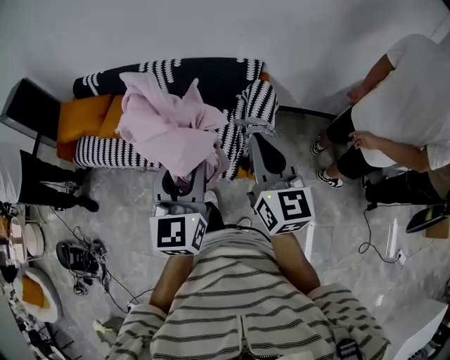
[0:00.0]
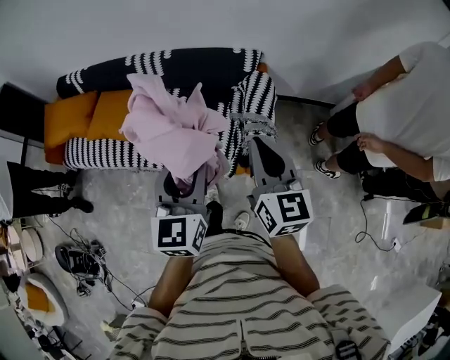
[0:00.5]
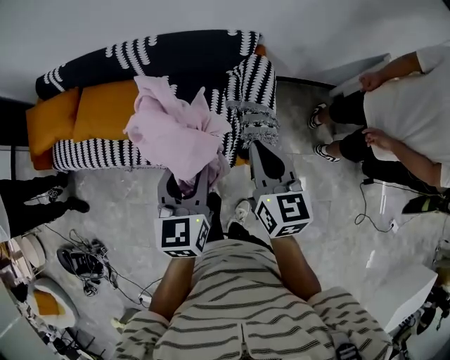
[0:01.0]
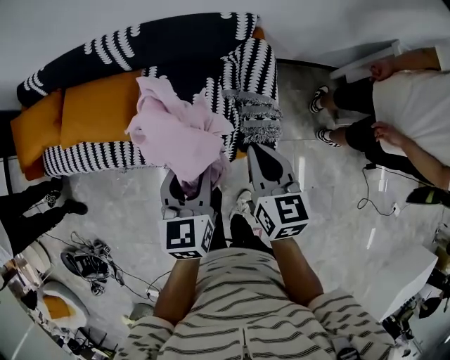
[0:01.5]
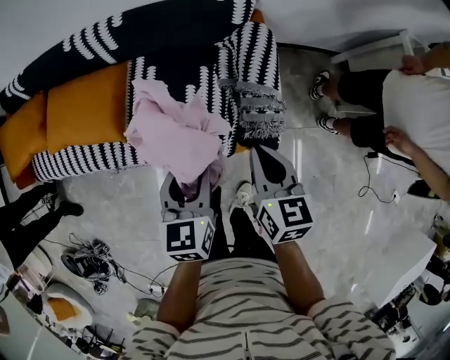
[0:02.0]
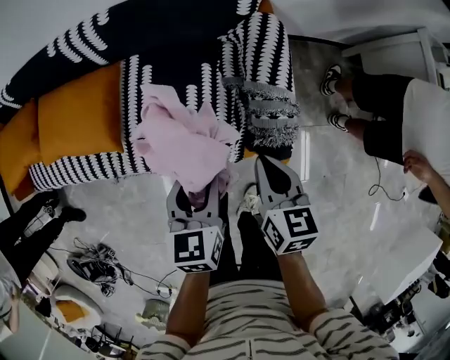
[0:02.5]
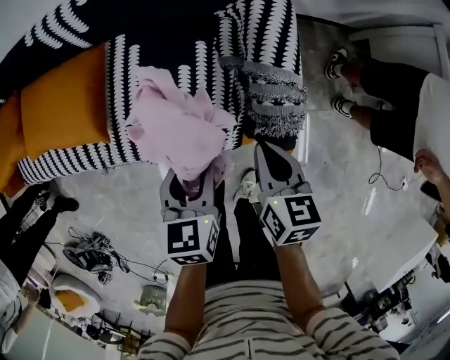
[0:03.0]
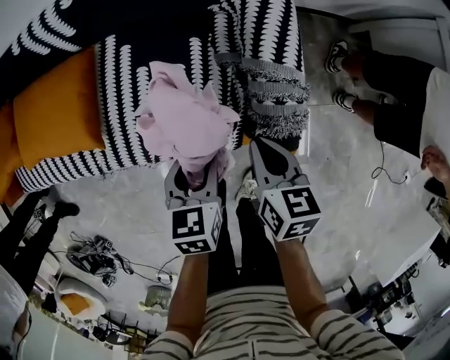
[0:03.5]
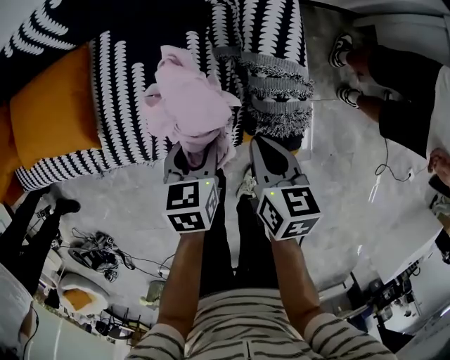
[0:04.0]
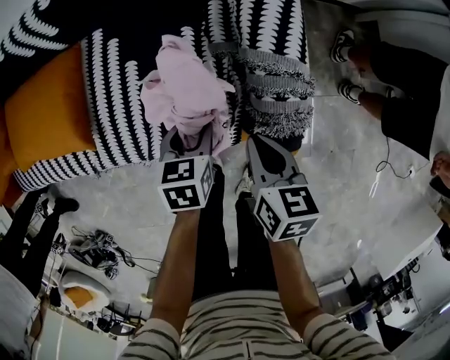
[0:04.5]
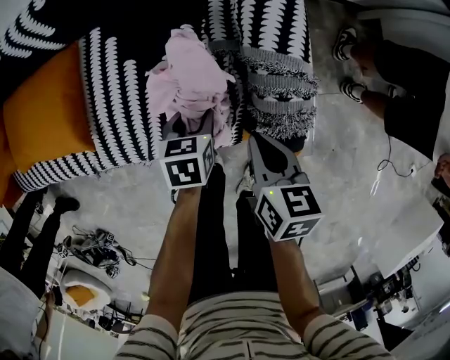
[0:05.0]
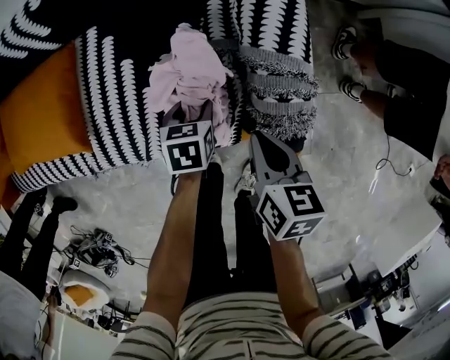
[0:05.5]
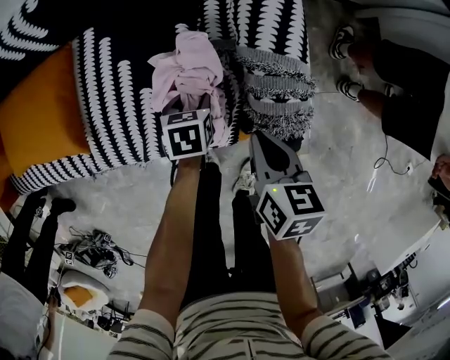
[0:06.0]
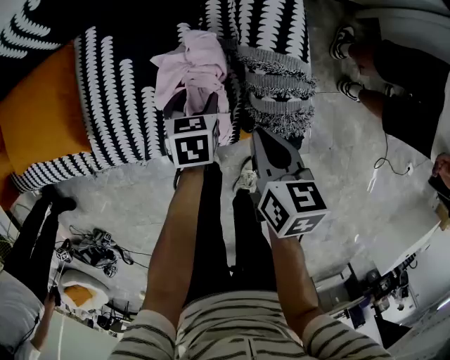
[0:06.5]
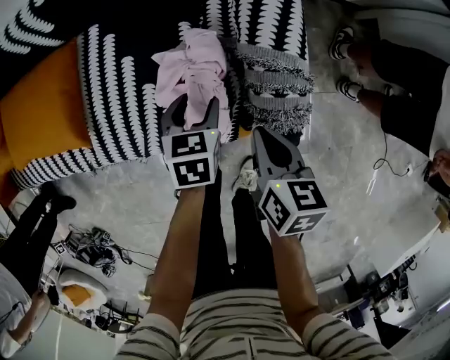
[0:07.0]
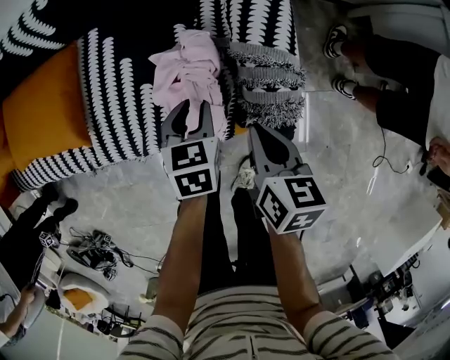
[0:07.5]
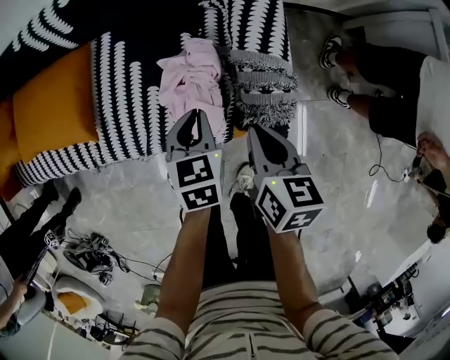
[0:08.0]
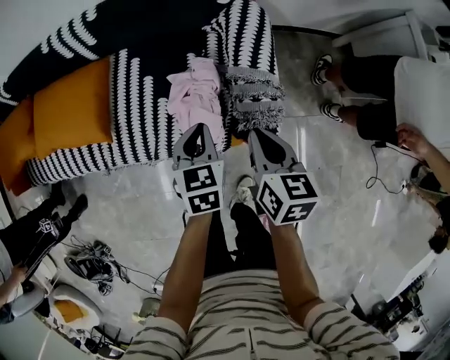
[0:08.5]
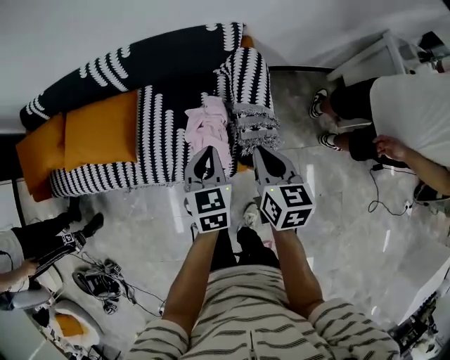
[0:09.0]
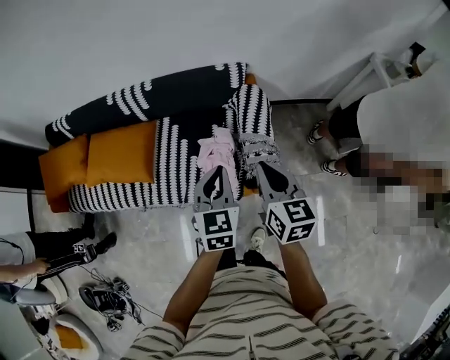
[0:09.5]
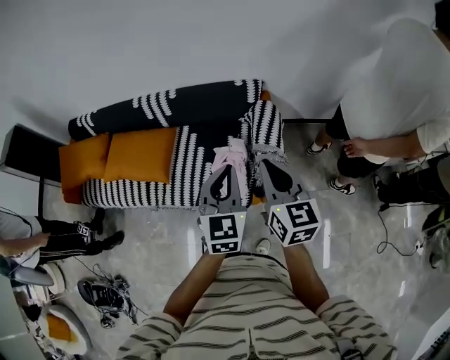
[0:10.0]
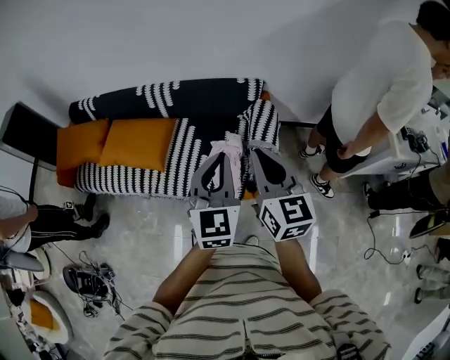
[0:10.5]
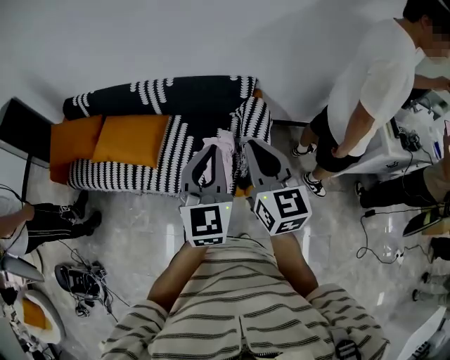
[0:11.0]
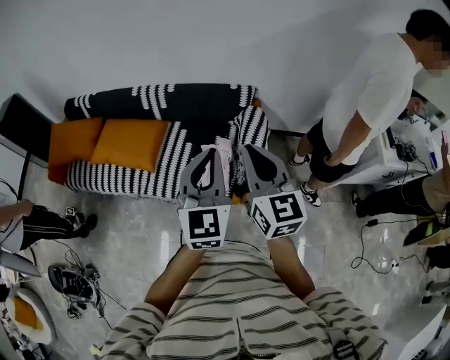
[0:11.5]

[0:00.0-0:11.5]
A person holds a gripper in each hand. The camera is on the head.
0:00.0 to 0:02.0: Both grippers travel together downward and forward, about 35 cm. The left gripper changes its angle by roughly 30 degrees; the right gripper tips its fingers downward by approximately 30 degrees.
0:02.0 to 0:04.0: Both grippers travel together downward, roughly 25 cm. The left gripper turns by some 20 degrees.
0:04.0 to 0:06.0: The left gripper goes about 15 cm downward and forward.
0:06.0 to 0:07.5: The left gripper goes roughly 10 cm upward.
0:07.5 to 0:09.5: Both grippers move upward, roughly 35 cm. The right gripper swivels some 30 degrees. The left gripper rotates approximately 30 degrees, and closes up.
0:09.5 to 0:11.5: The grippers both shift upward and backward by roughly 20 cm. The left gripper swivels about 30 degrees. Meanwhile the right gripper changes its angle by about 30 degrees.

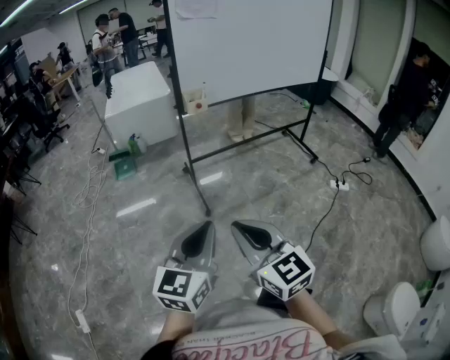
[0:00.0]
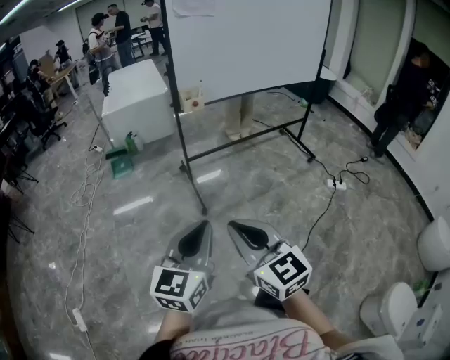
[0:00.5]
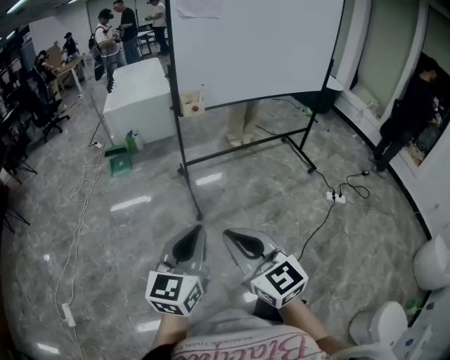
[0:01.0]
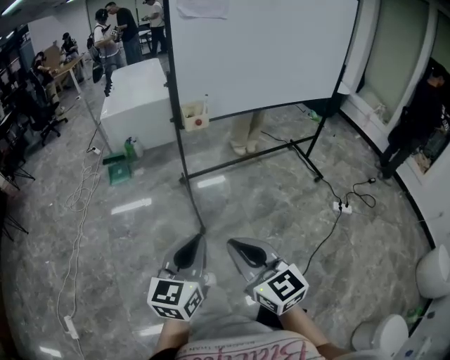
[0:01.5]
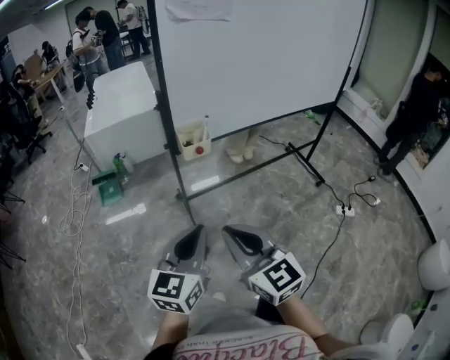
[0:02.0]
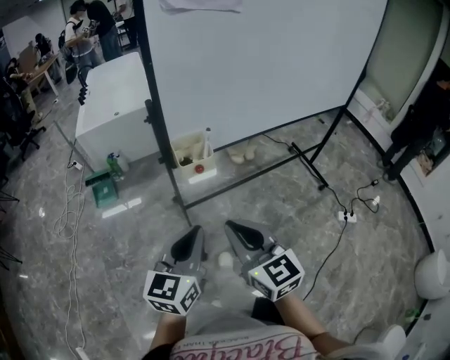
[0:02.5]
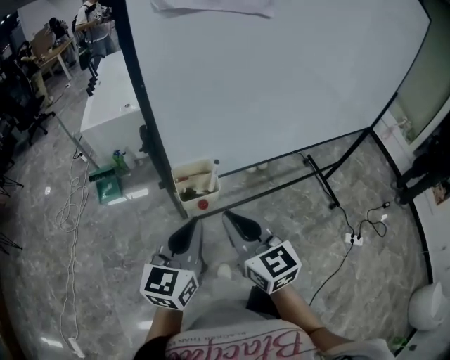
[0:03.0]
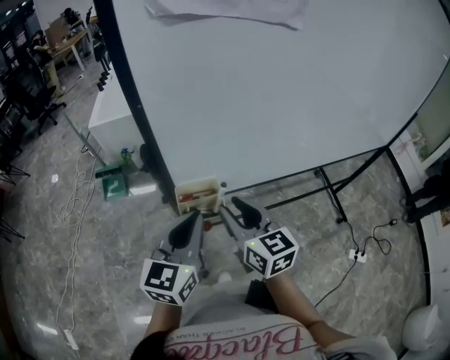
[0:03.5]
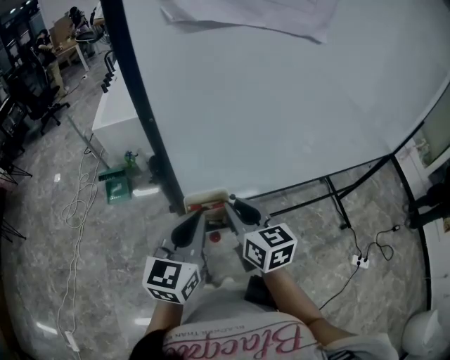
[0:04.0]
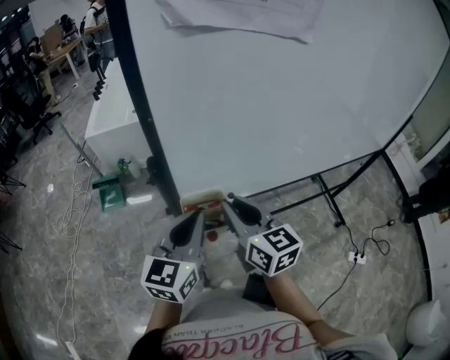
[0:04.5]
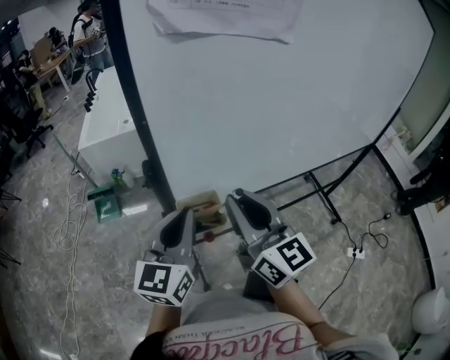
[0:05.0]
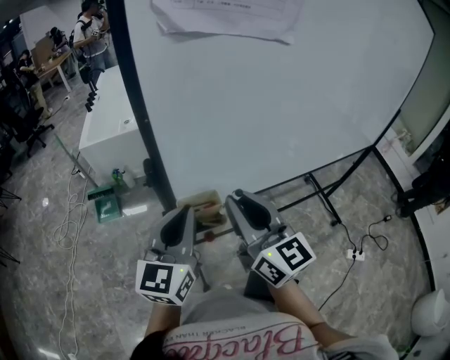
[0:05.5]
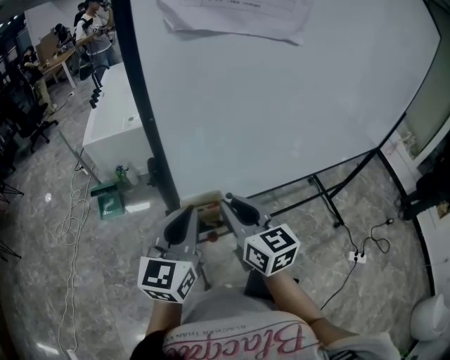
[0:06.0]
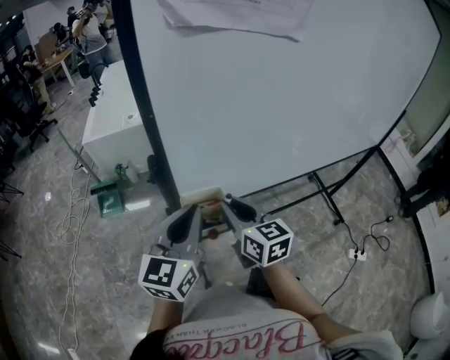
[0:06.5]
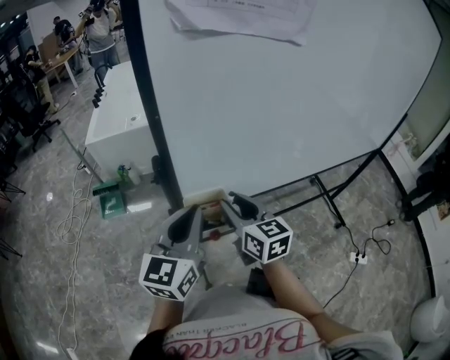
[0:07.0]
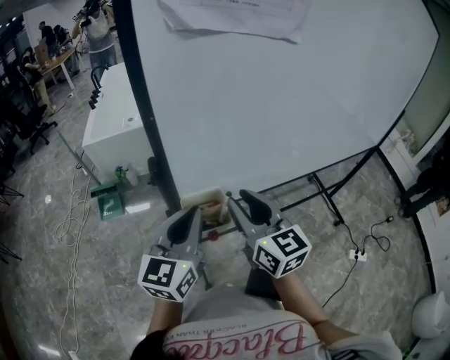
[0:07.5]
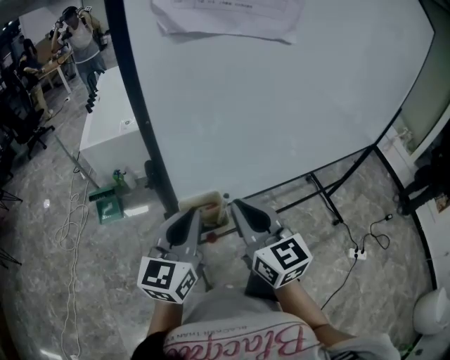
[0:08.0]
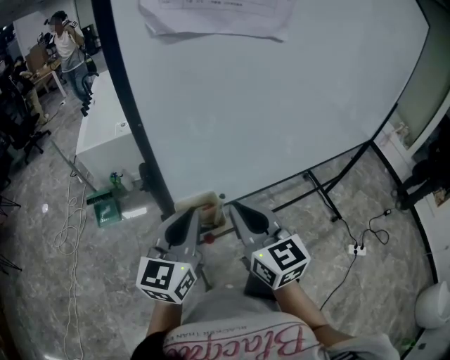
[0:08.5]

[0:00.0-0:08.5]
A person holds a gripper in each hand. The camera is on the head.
0:00.0 to 0:02.0: The two grippers go roughly 30 cm forward.
0:02.0 to 0:04.0: The two grippers go about 35 cm forward.
0:04.0 to 0:06.5: The right gripper moves roughly 10 cm upward and comes back.
0:06.5 to 0:08.5: The right gripper is displaced upward by roughly 5 cm.

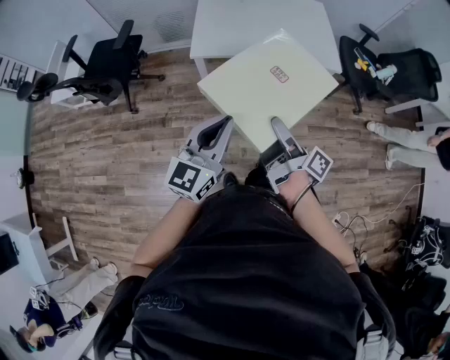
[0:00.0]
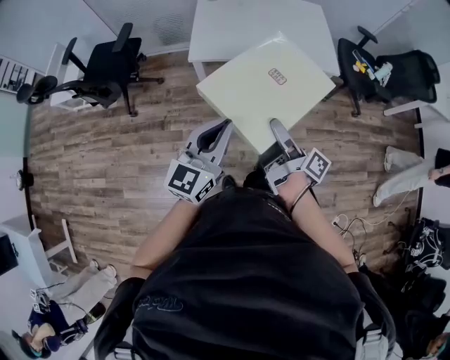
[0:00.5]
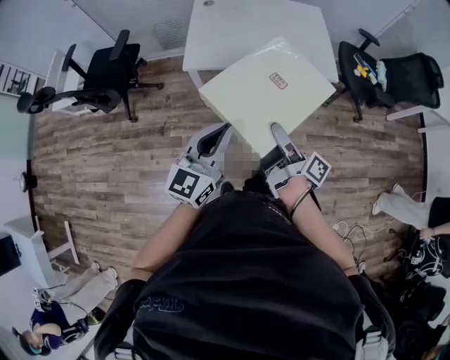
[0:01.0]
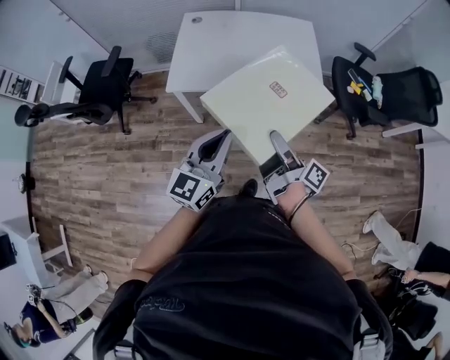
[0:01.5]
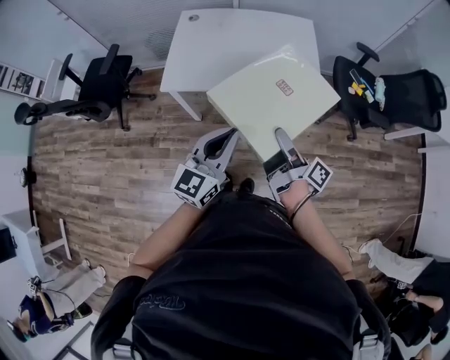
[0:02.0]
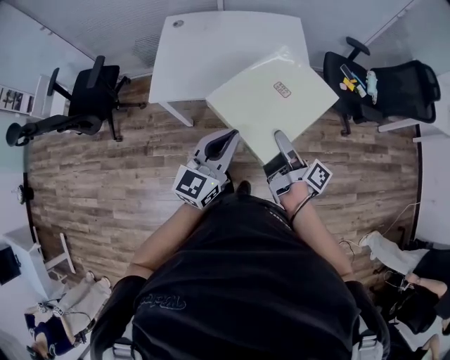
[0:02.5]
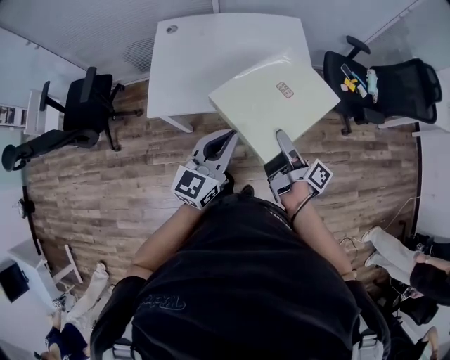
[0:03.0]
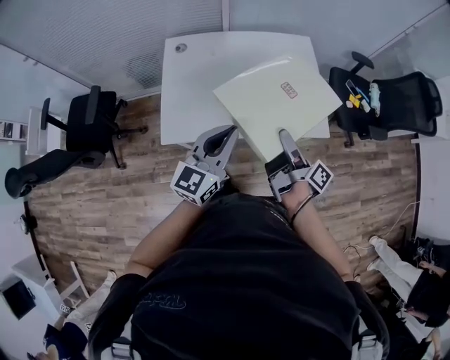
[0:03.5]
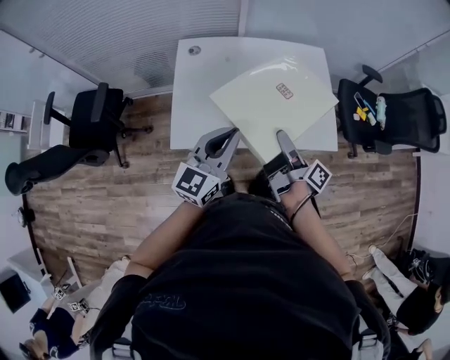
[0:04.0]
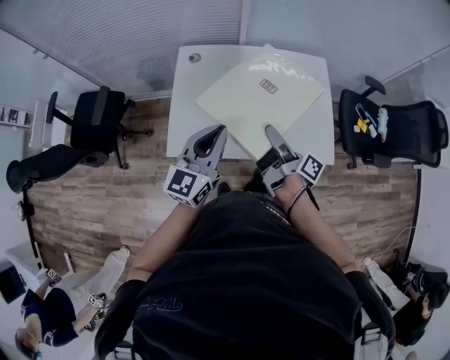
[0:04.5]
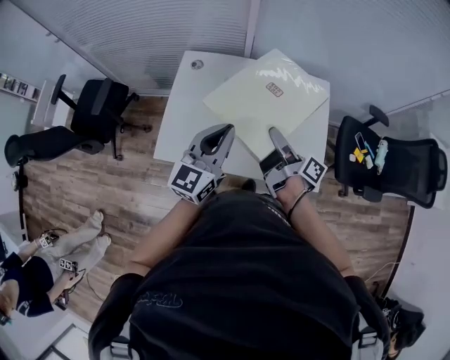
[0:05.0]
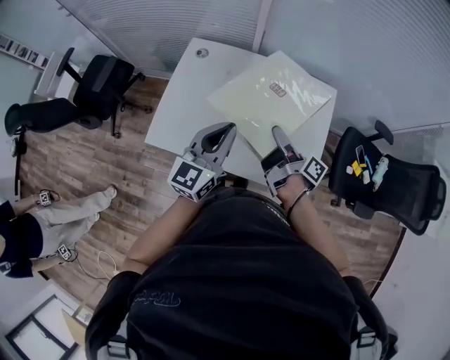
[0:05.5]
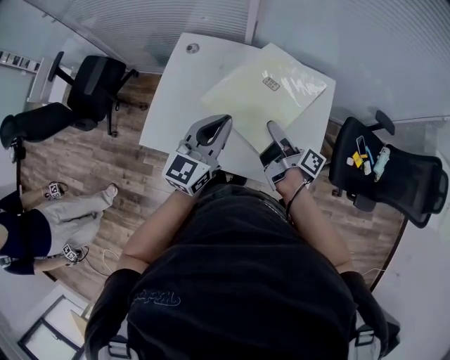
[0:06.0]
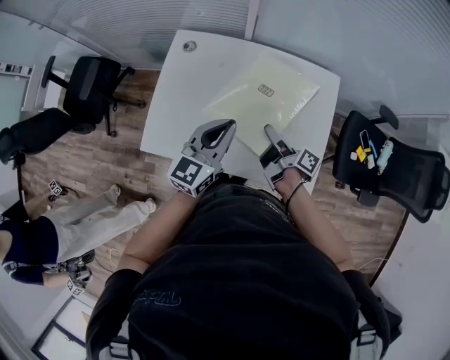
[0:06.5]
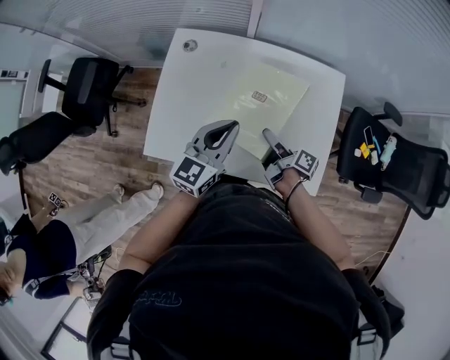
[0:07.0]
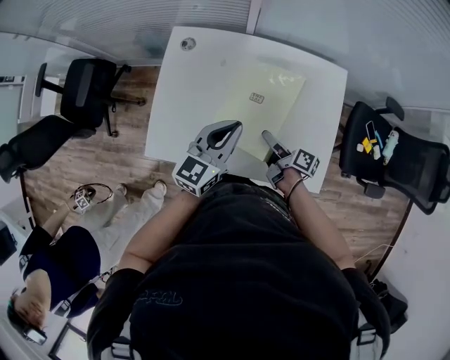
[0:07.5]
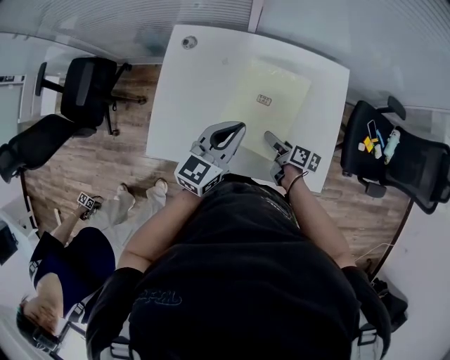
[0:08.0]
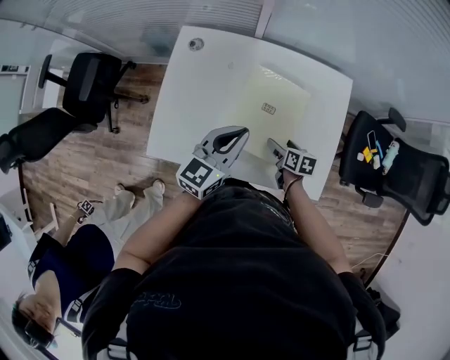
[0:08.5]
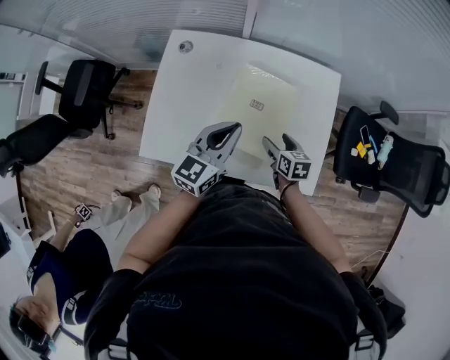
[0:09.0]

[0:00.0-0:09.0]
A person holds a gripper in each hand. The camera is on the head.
0:00.0 to 0:02.0: Both grippers move to the right and forward, approximately 25 cm.
0:02.0 to 0:04.5: Both grippers move forward and to the left, approximately 30 cm.
0:04.5 to 0:07.0: The right gripper heads downward, forward and to the right, covering roughly 20 cm, and swivels some 30 degrees; the left gripper moves forward, to the right and downward, roughly 20 cm.
0:07.0 to 0:09.0: The right gripper rolls counterclockwise, seen from behind, by some 50 degrees.
